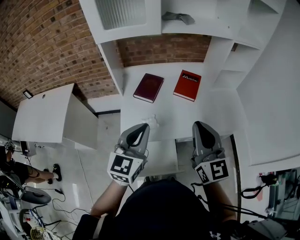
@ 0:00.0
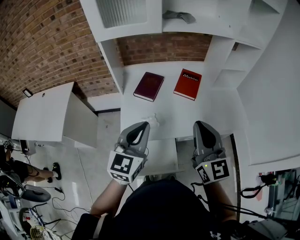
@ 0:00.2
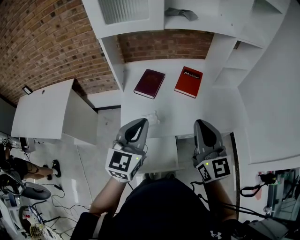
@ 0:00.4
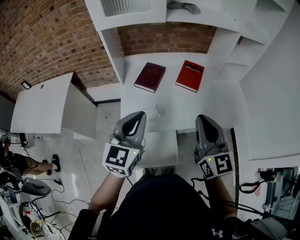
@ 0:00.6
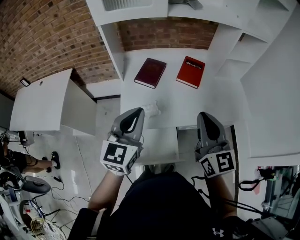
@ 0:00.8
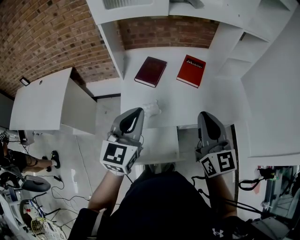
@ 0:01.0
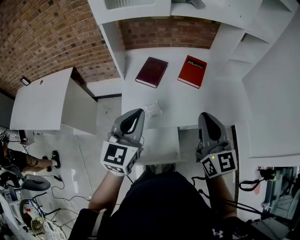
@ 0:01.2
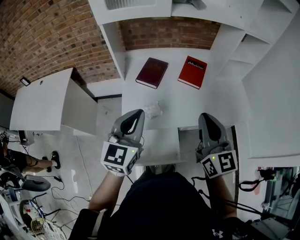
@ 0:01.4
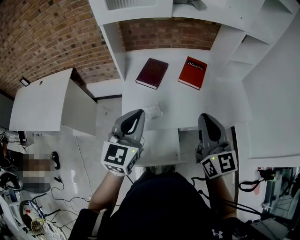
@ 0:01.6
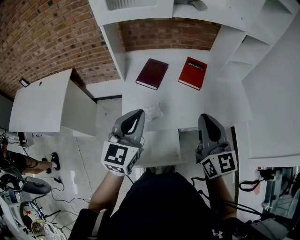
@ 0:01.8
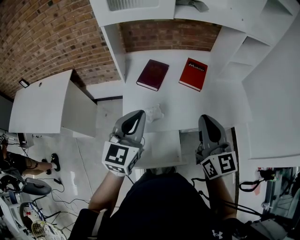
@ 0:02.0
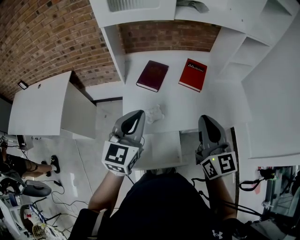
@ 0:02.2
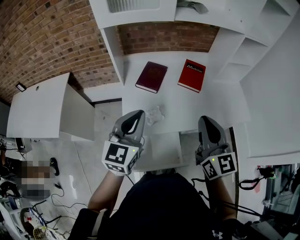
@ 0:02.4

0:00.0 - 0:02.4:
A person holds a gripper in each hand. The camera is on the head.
0:00.0 - 0:01.2: There are only small adjustments of the grippers.
0:01.2 - 0:02.4: The grippers stay close to where they were, moving slightly.

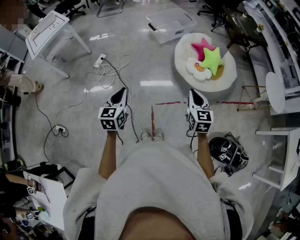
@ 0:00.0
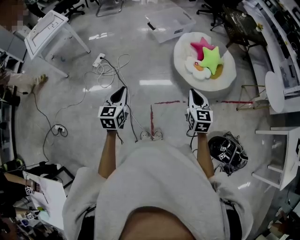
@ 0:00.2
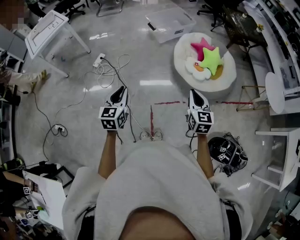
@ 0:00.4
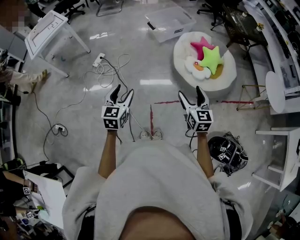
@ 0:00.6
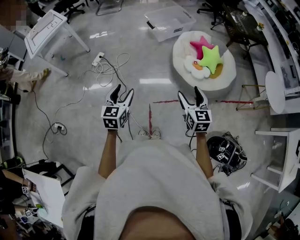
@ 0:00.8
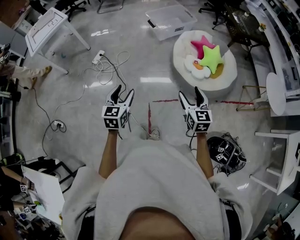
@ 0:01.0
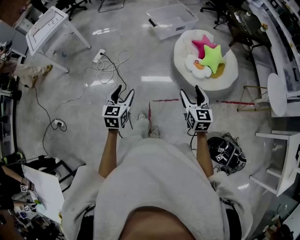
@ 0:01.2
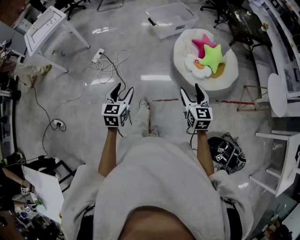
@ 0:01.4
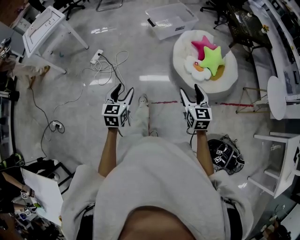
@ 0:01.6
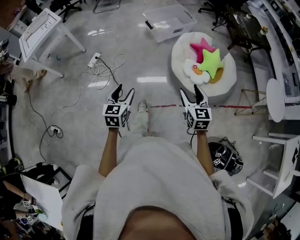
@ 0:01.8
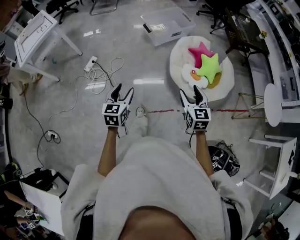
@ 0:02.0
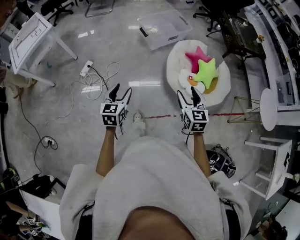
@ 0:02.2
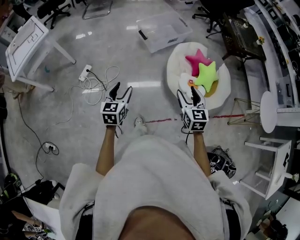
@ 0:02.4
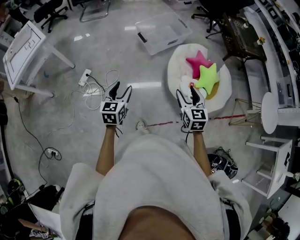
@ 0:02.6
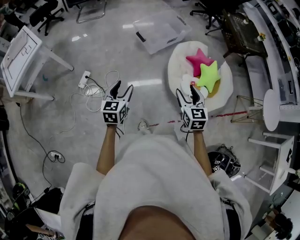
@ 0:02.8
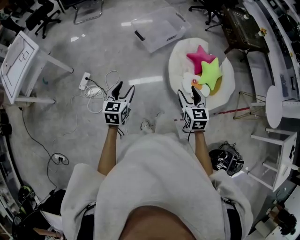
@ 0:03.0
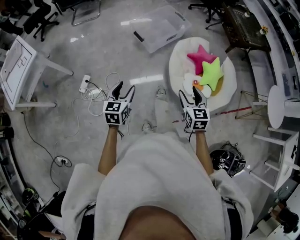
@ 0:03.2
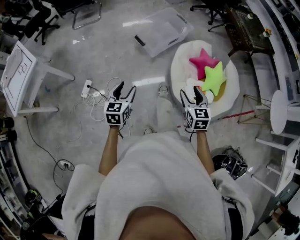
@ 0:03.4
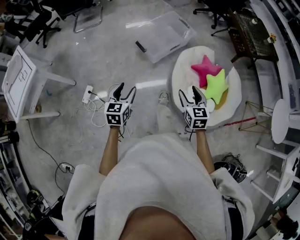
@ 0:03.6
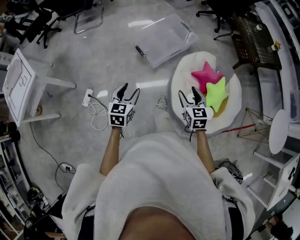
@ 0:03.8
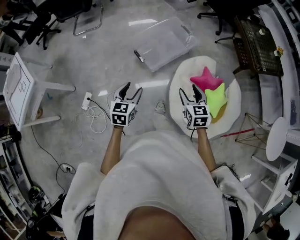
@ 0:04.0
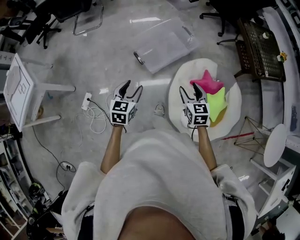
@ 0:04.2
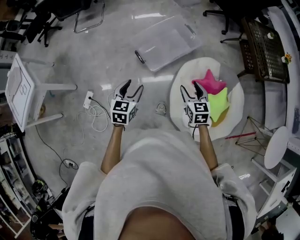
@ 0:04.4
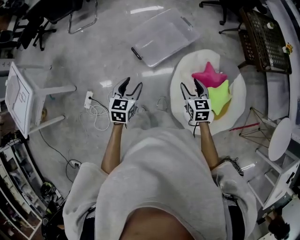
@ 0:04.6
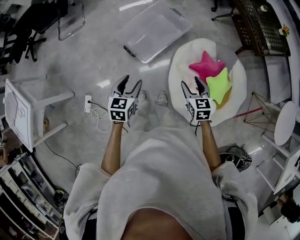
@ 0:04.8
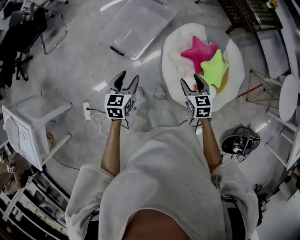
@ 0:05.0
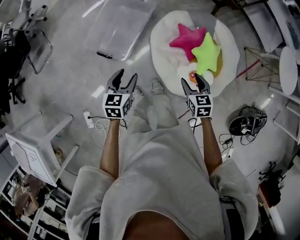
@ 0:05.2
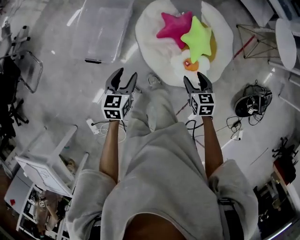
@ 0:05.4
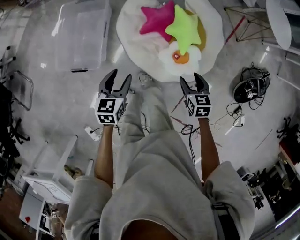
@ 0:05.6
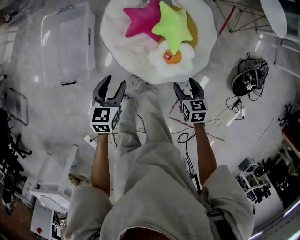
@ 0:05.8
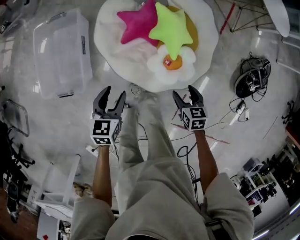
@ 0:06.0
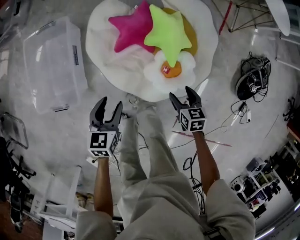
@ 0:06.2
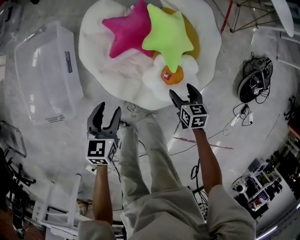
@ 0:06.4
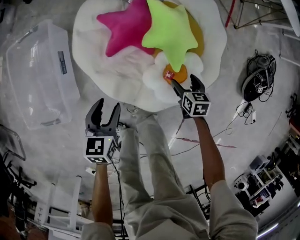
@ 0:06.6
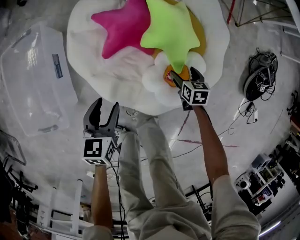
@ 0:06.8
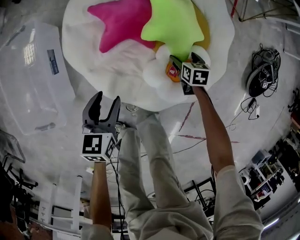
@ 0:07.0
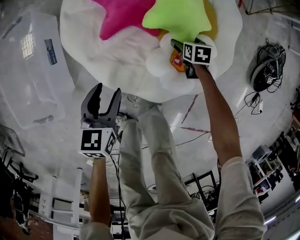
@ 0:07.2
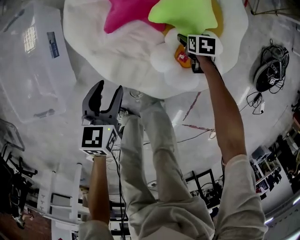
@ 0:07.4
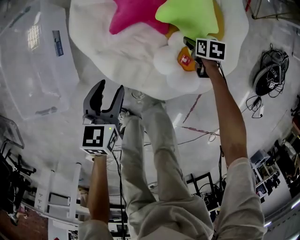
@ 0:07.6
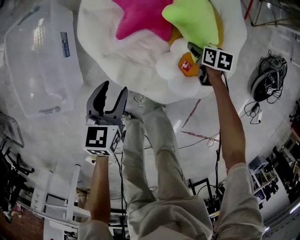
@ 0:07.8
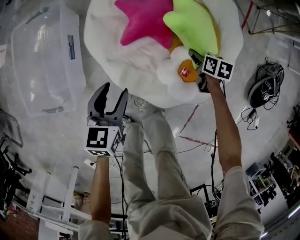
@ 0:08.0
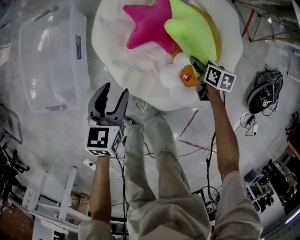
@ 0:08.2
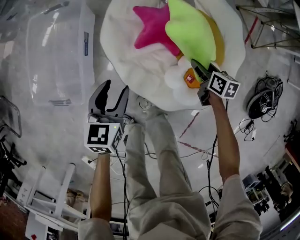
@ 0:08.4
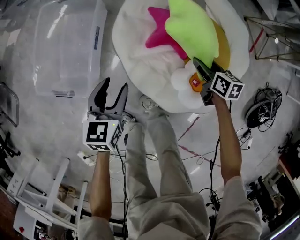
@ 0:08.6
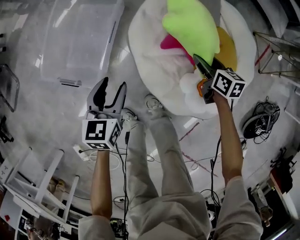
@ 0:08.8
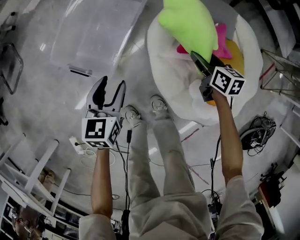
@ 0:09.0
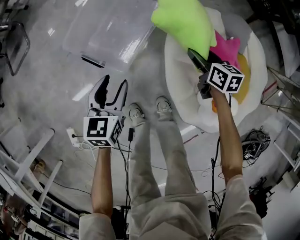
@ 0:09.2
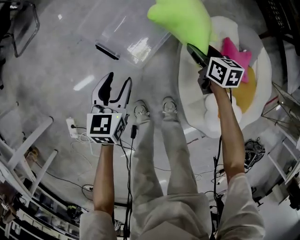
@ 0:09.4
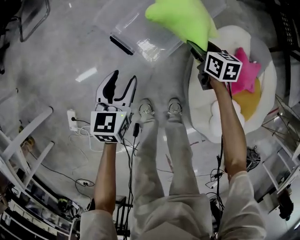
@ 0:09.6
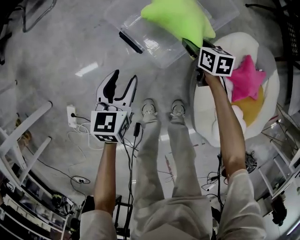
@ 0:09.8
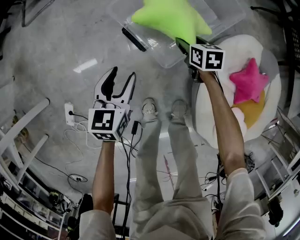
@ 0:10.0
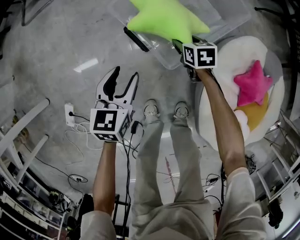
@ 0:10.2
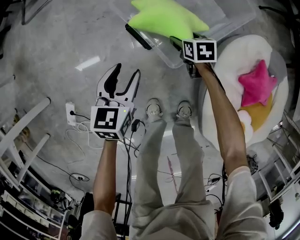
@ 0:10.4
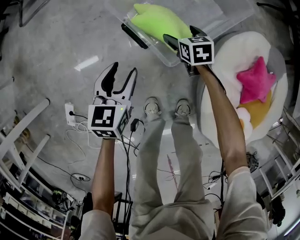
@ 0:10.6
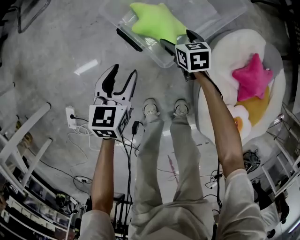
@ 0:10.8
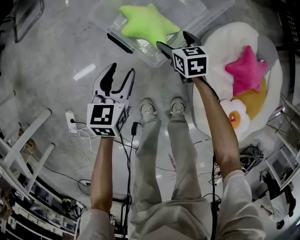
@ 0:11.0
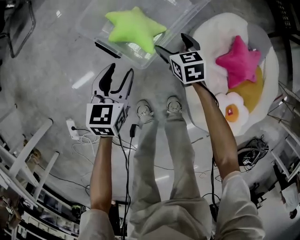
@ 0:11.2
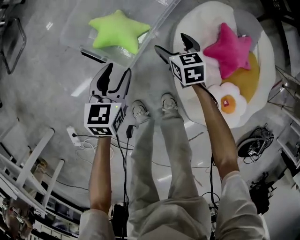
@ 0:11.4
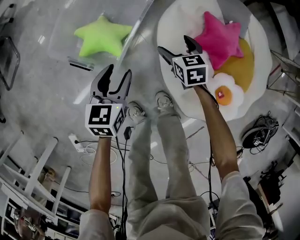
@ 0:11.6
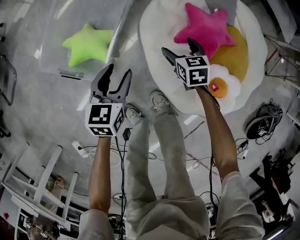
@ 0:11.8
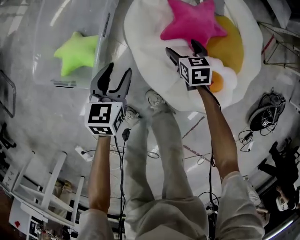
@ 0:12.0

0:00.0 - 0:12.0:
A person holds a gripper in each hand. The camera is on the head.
0:00.0 - 0:01.6: The left gripper moves forward and to the right, approximately 10 cm, and opens. The right gripper heads forward, covering roughly 5 cm, and opens.
0:01.6 - 0:03.0: Both grippers move forward, roughly 35 cm.
0:03.0 - 0:04.4: Both grippers are carried forward, approximately 50 cm.
0:04.4 - 0:06.0: Both grippers move downward, approximately 30 cm. The left gripper turns by some 60 degrees. The right gripper swivels about 60 degrees.
0:06.0 - 0:07.6: Both grippers move downward, roughly 30 cm. The right gripper swivels some 20 degrees.
0:07.6 - 0:09.0: The left gripper shifts by roughly 30 cm, and swivels approximately 30 degrees; the right gripper ends up some 40 cm from where it was, and angles its fingers upward, by about 30 degrees.
0:09.0 - 0:10.4: The left gripper ends up roughly 30 cm from where it was, and rotates some 20 degrees; the right gripper changes place by some 50 cm, and changes its angle by about 40 degrees.
0:10.4 - 0:12.0: The right gripper shifts by about 50 cm, and turns by some 30 degrees, while the left gripper changes place by about 40 cm, and turns by some 40 degrees.

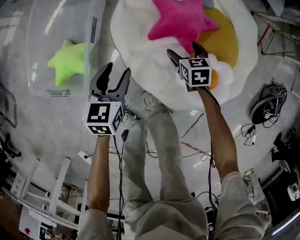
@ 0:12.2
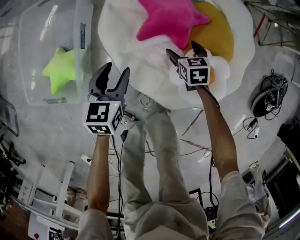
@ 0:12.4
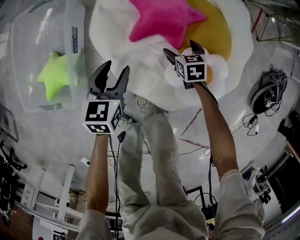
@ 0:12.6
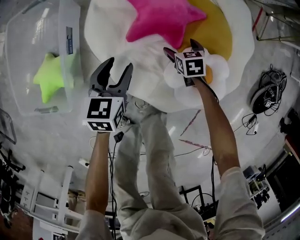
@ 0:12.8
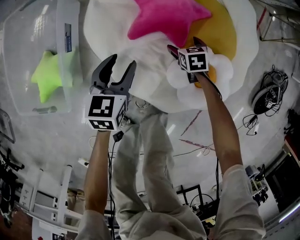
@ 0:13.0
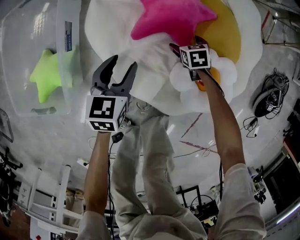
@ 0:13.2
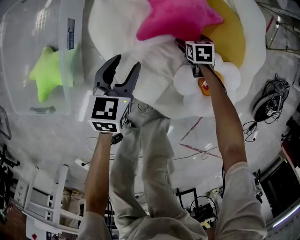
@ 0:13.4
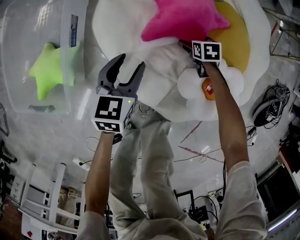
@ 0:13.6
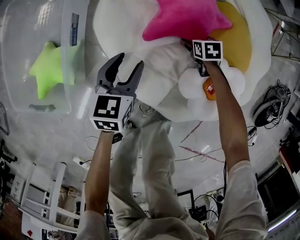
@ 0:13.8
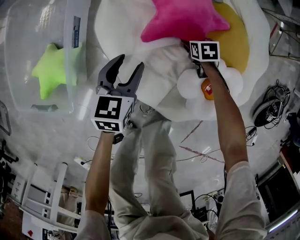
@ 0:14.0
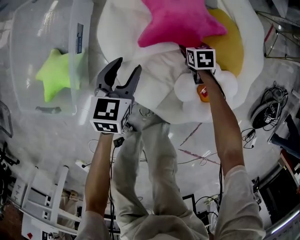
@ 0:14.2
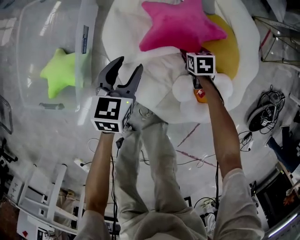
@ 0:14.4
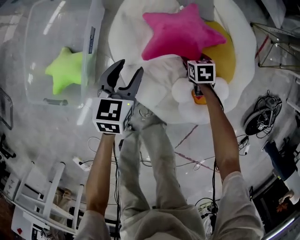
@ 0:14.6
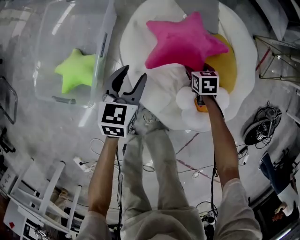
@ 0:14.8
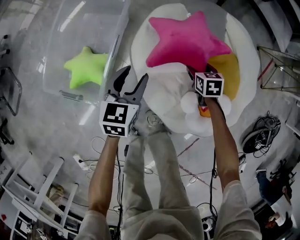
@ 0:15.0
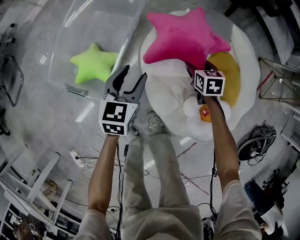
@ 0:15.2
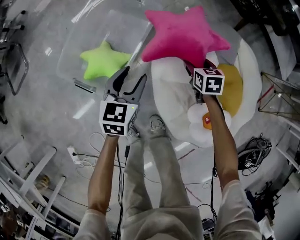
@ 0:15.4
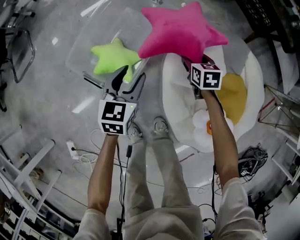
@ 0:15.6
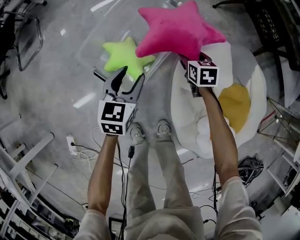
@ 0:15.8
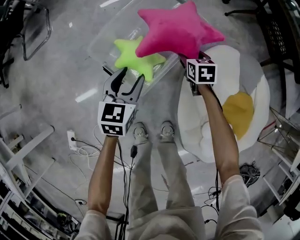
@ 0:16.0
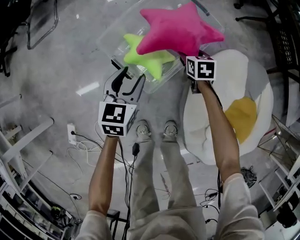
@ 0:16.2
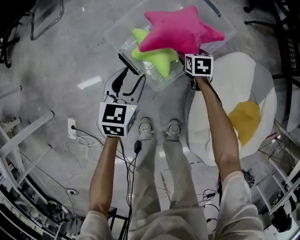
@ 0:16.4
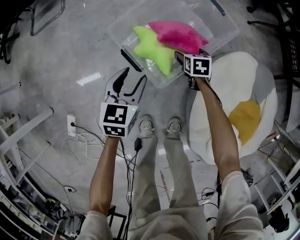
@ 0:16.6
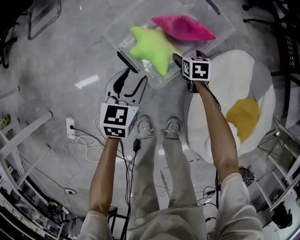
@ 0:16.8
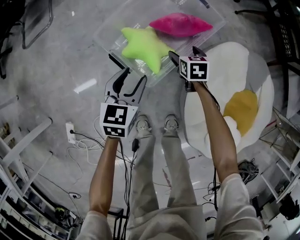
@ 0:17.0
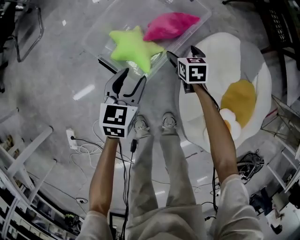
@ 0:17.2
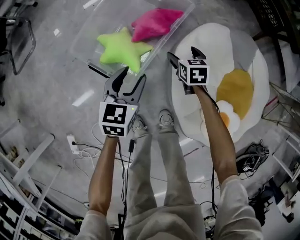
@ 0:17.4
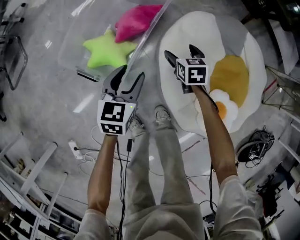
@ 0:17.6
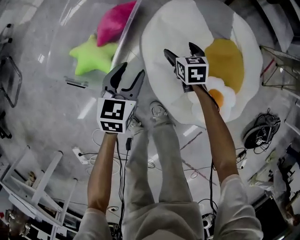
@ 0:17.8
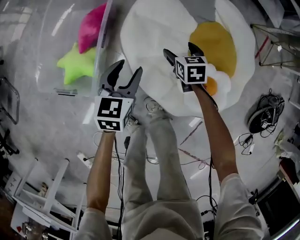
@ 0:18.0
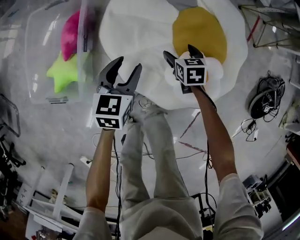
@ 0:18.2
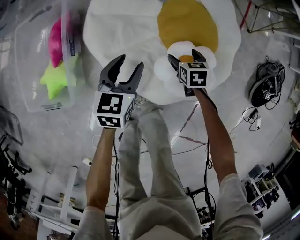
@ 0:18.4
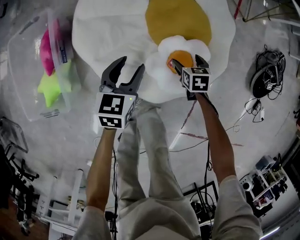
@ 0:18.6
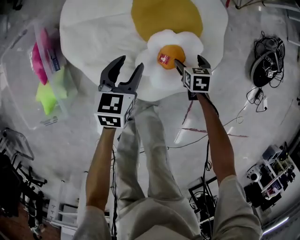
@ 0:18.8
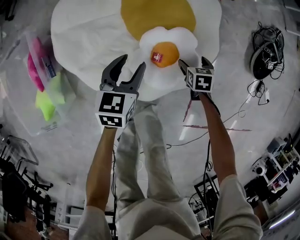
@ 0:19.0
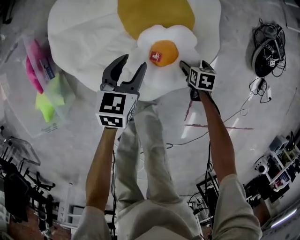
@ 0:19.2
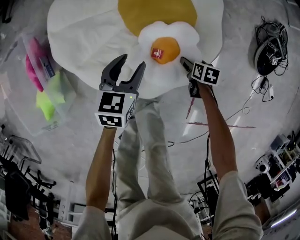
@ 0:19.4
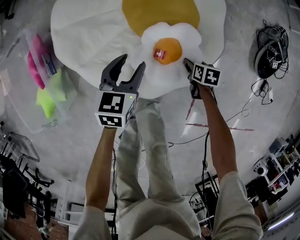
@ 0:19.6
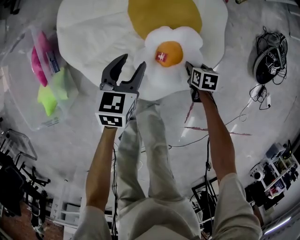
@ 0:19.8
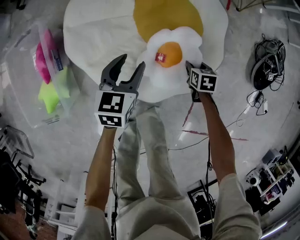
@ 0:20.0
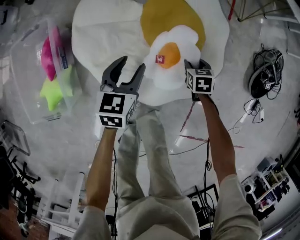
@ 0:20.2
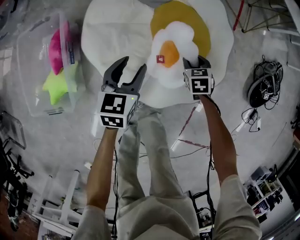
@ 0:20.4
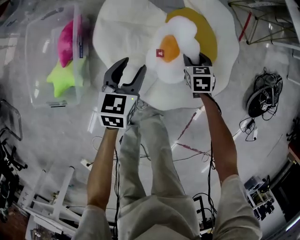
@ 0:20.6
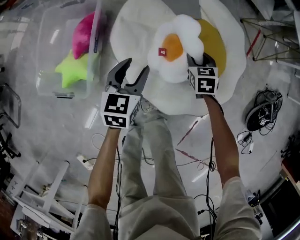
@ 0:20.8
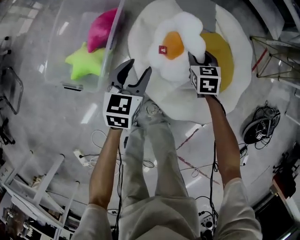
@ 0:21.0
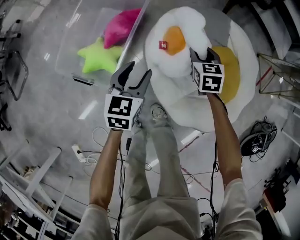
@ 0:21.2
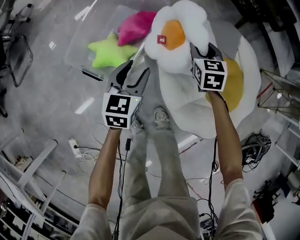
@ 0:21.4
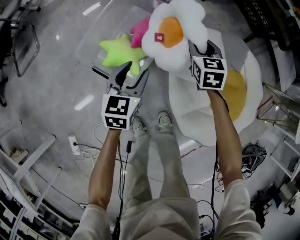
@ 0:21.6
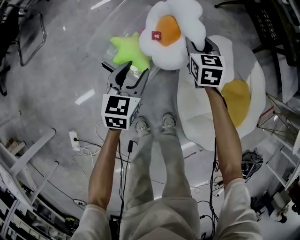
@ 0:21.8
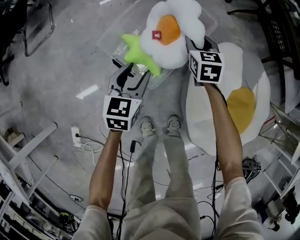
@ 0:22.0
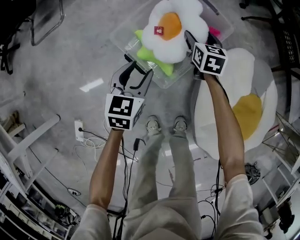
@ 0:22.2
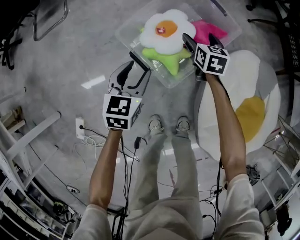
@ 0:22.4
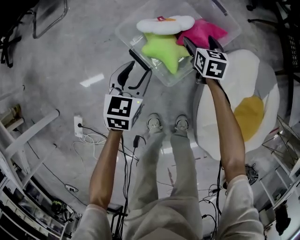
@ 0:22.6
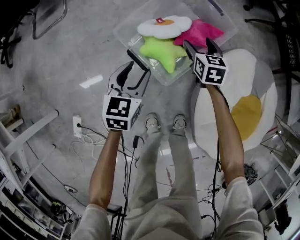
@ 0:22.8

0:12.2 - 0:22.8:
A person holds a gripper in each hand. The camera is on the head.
0:12.2 - 0:13.8: Both grippers travel together downward, roughly 15 cm.
0:13.8 - 0:15.2: Both grippers travel together upward, roughly 25 cm.
0:15.2 - 0:16.8: The right gripper moves approximately 40 cm, turns by some 20 degrees, and opens. The left gripper changes place by roughly 35 cm, and swivels approximately 30 degrees.
0:16.8 - 0:18.2: The two grippers travel together, roughly 50 cm. The right gripper swivels some 40 degrees, while the left gripper swivels approximately 40 degrees.
0:18.2 - 0:19.8: The left gripper moves approximately 20 cm; the right gripper shifts by some 35 cm, changes its angle by about 30 degrees, and closes.
0:19.8 - 0:21.2: The left gripper changes place by roughly 40 cm, and changes its angle by roughly 40 degrees. The right gripper shifts by roughly 60 cm, and twists approximately 50 degrees counterclockwise, seen from behind.
0:21.2 - 0:22.8: The left gripper shifts by some 35 cm, and changes its angle by approximately 30 degrees. The right gripper reaches approximately 5 cm upward, then returns, changes its angle by approximately 20 degrees, and opens up.
